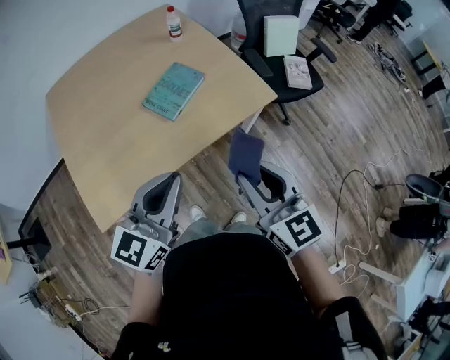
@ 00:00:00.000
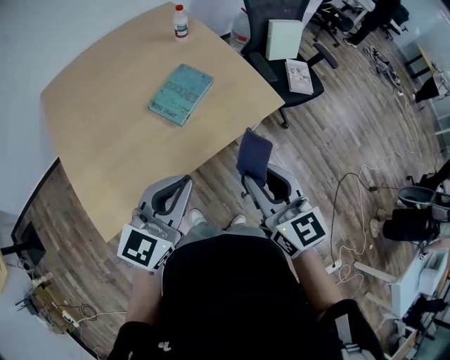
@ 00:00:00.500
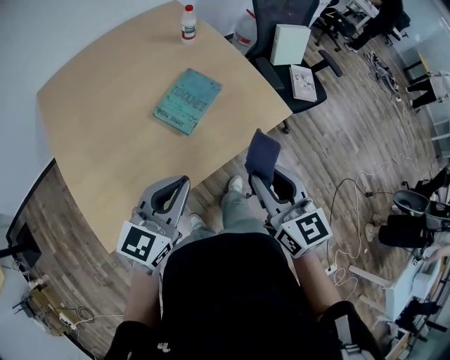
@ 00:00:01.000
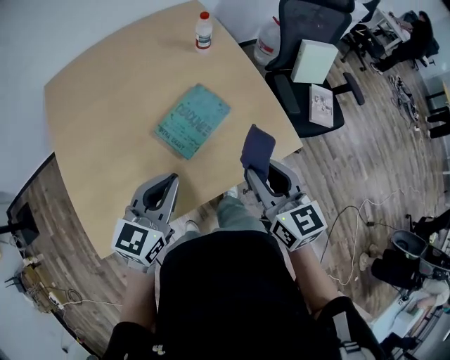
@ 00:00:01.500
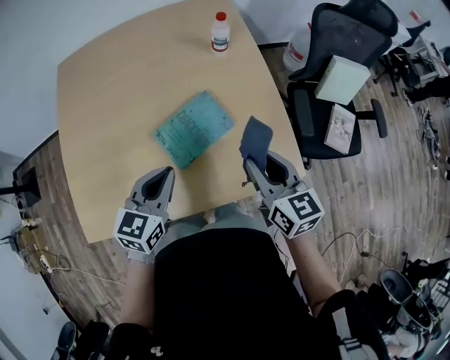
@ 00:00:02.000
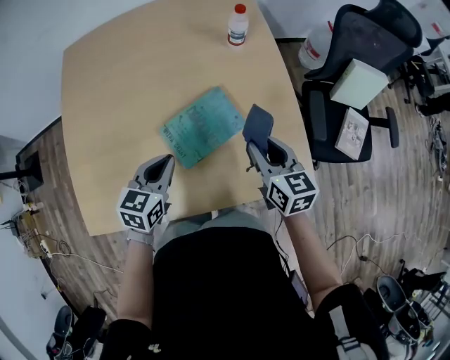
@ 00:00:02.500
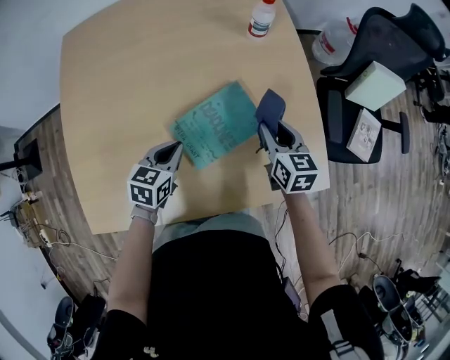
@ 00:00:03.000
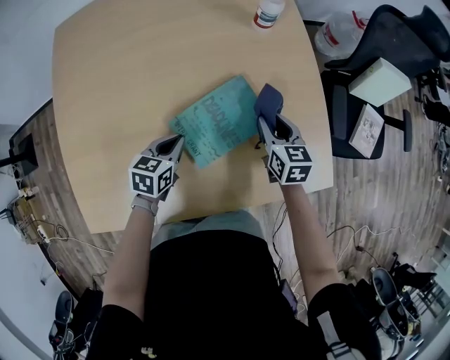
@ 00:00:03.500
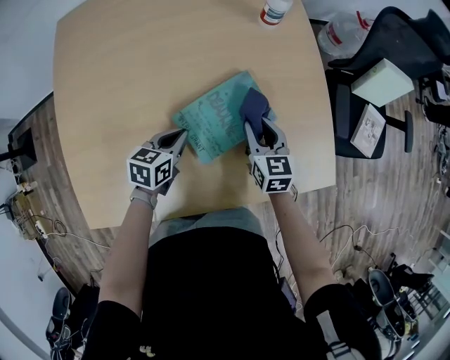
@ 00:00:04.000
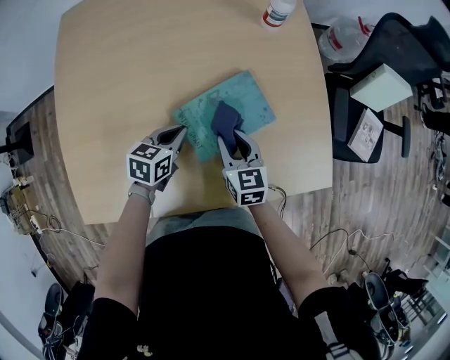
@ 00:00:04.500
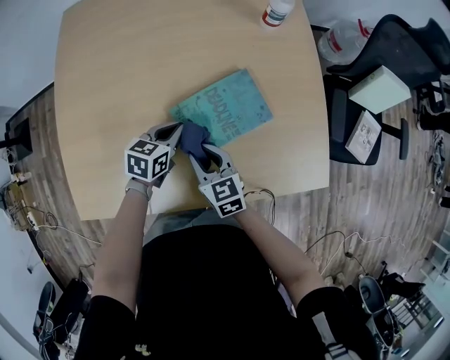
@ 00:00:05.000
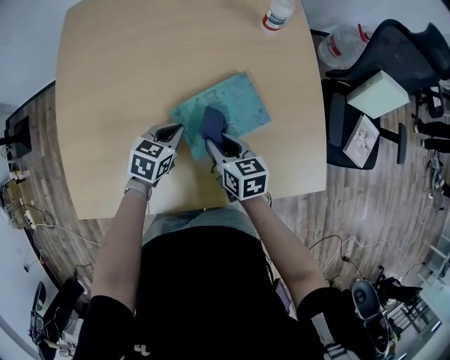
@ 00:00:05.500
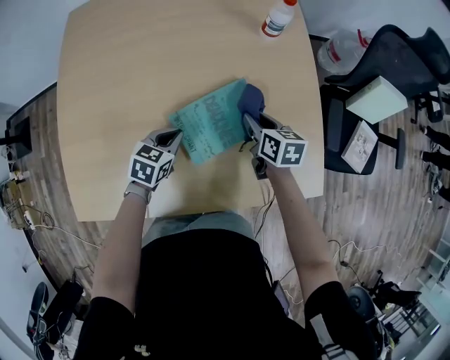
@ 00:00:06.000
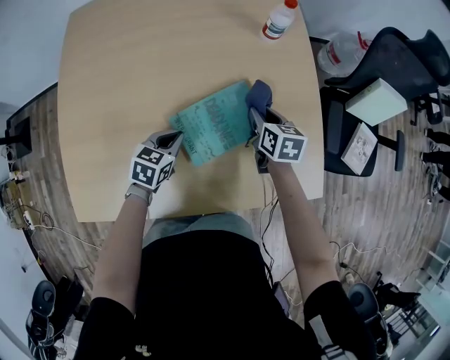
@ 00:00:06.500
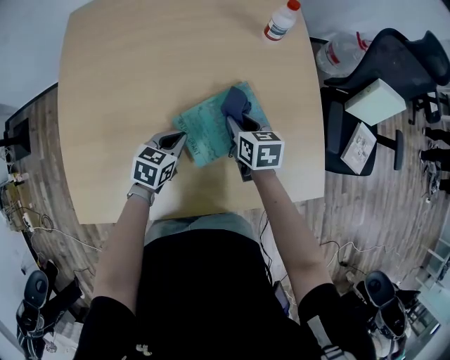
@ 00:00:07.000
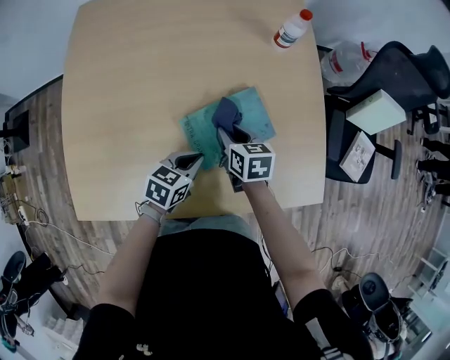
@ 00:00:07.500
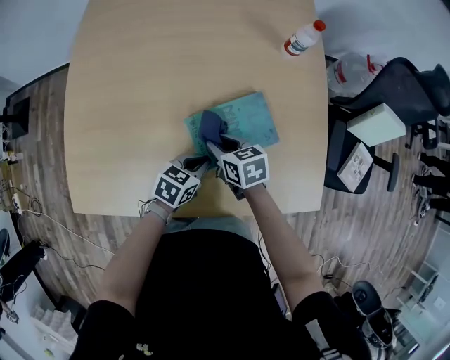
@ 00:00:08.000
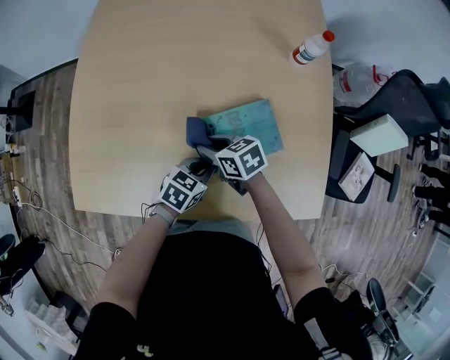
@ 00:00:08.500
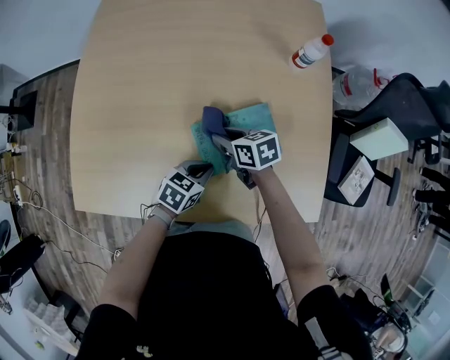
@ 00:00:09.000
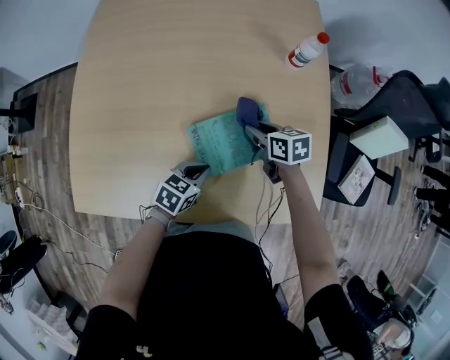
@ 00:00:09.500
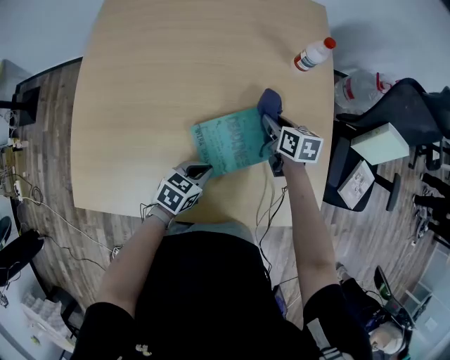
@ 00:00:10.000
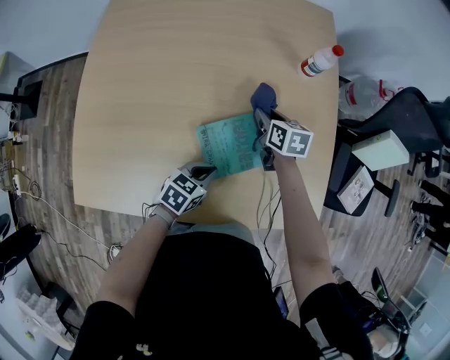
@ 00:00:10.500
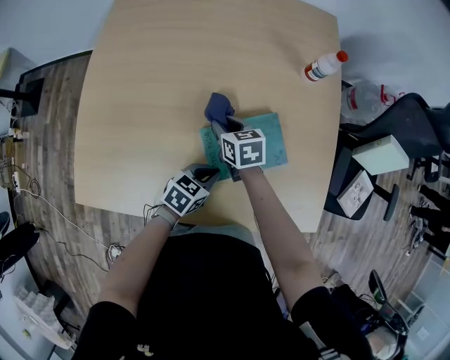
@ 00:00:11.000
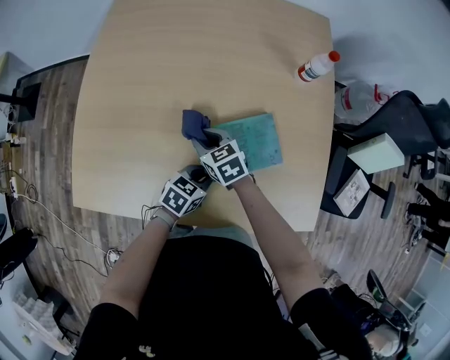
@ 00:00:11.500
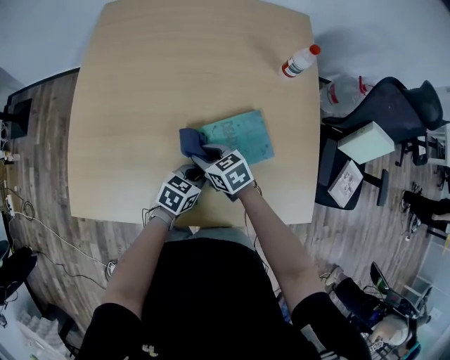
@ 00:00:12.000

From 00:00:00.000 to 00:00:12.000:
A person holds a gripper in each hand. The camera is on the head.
From 00:00:00.000 to 00:00:02.000: The right gripper moves forward, some 35 cm, and turns by approximately 20 degrees. The left gripper is displaced forward and downward by approximately 30 cm, and changes its angle by approximately 30 degrees.
From 00:00:02.000 to 00:00:04.000: The right gripper travels downward, forward and to the left by roughly 25 cm; the left gripper moves downward and forward, some 20 cm, and swivels about 20 degrees.
From 00:00:04.000 to 00:00:06.000: The right gripper moves about 10 cm backward and comes back, and swivels about 20 degrees.
From 00:00:06.000 to 00:00:08.000: The right gripper heads to the left and backward, covering some 15 cm, and rotates some 30 degrees, while the left gripper travels backward and to the right by about 10 cm.
From 00:00:08.000 to 00:00:10.000: The right gripper shifts by approximately 20 cm.
From 00:00:10.000 to 00:00:12.000: The right gripper goes some 25 cm to the left and backward, and swivels some 30 degrees.

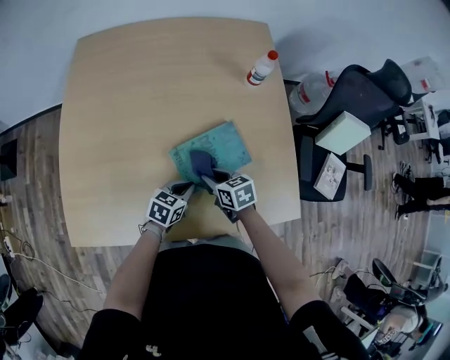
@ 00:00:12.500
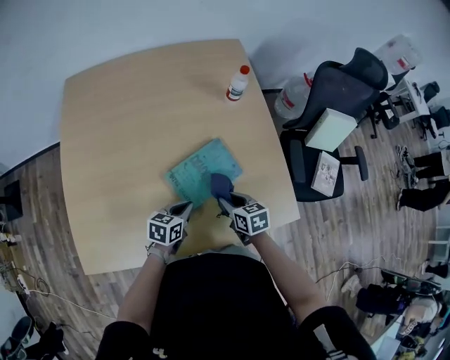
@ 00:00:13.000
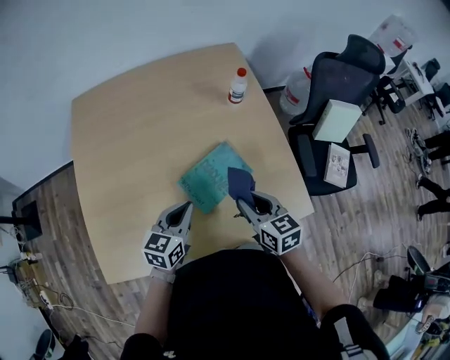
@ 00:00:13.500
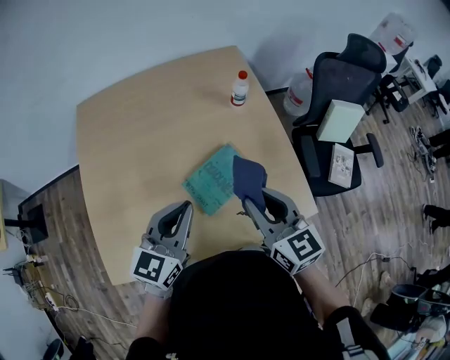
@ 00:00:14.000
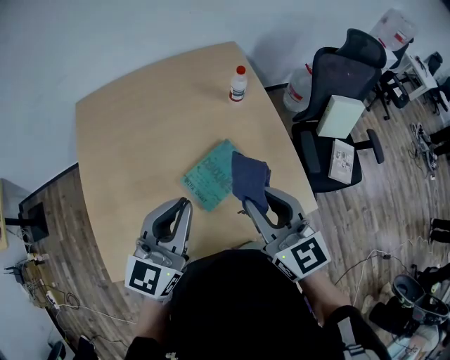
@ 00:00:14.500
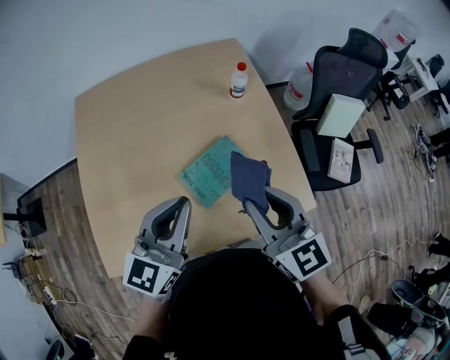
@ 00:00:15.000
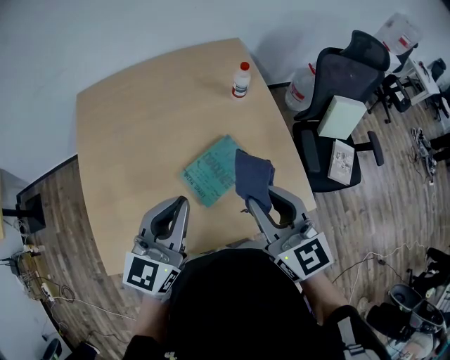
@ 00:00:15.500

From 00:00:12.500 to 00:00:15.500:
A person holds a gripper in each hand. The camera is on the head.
From 00:00:12.500 to 00:00:14.000: Both grippers travel together upward, about 30 cm. The left gripper changes its angle by some 40 degrees, while the right gripper tilts its fingers roughly 30 degrees upward.
From 00:00:14.000 to 00:00:15.500: The right gripper changes place by approximately 5 cm.

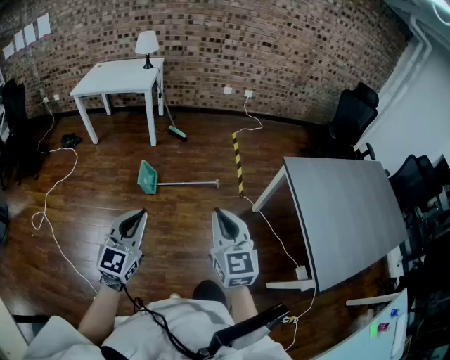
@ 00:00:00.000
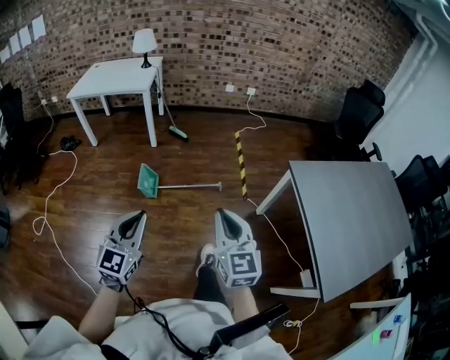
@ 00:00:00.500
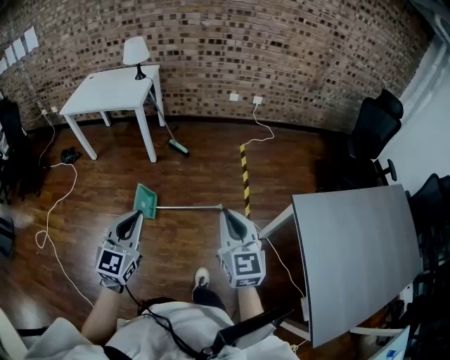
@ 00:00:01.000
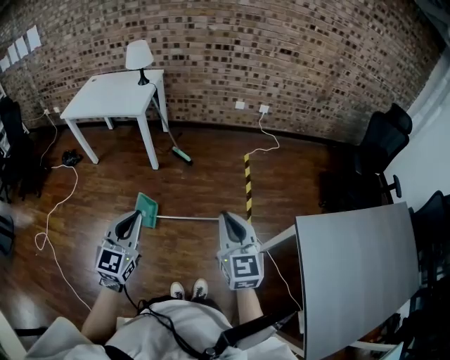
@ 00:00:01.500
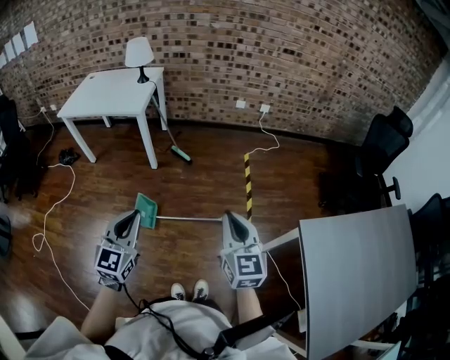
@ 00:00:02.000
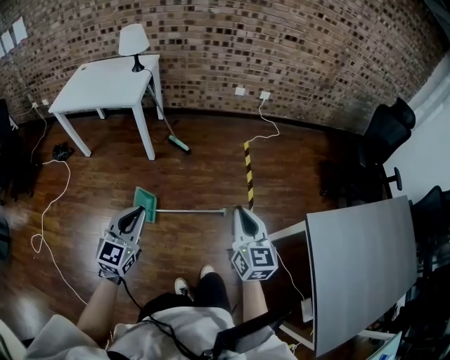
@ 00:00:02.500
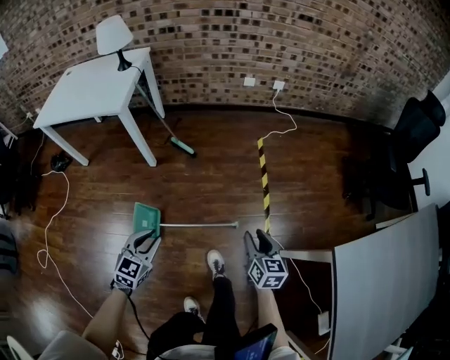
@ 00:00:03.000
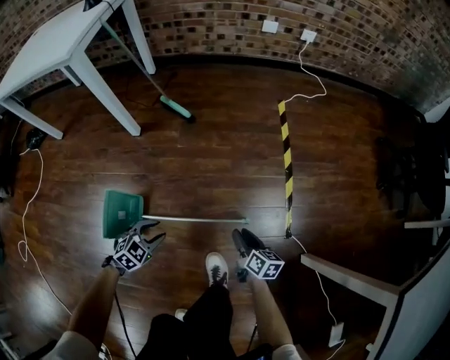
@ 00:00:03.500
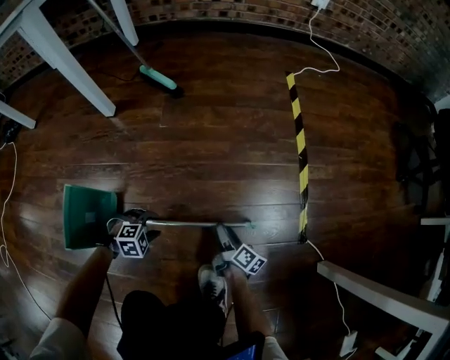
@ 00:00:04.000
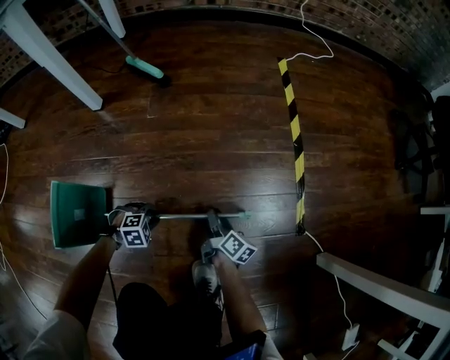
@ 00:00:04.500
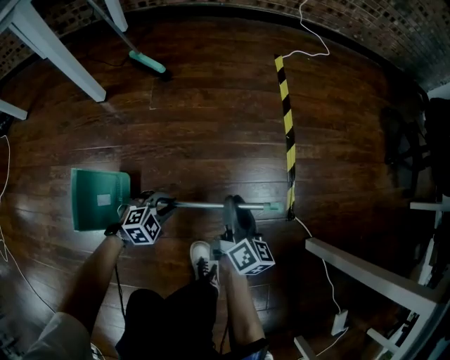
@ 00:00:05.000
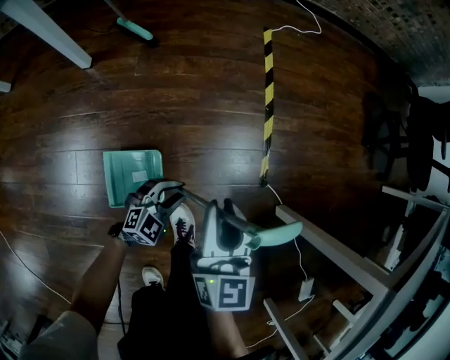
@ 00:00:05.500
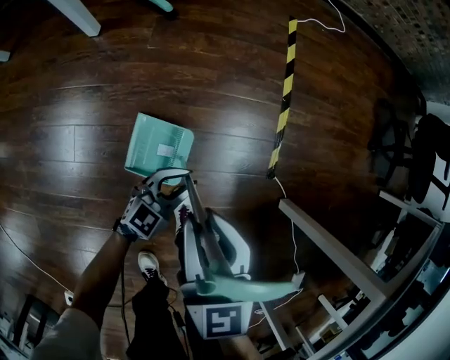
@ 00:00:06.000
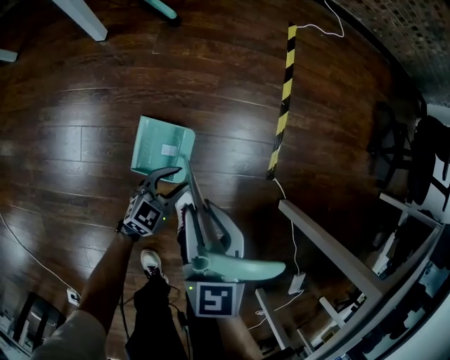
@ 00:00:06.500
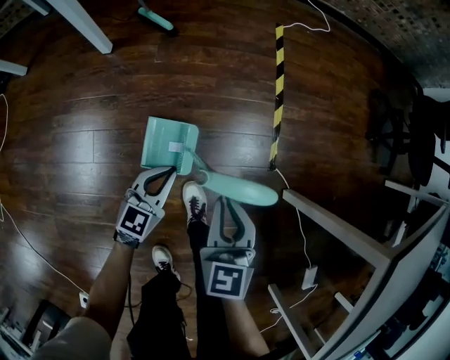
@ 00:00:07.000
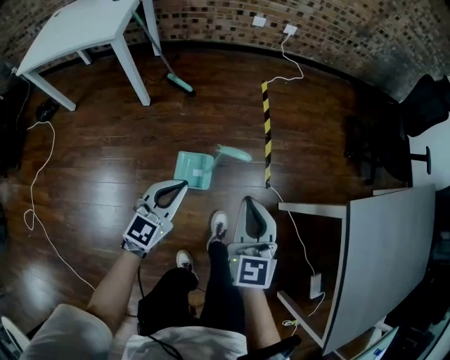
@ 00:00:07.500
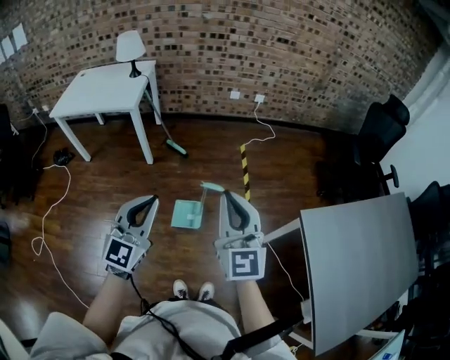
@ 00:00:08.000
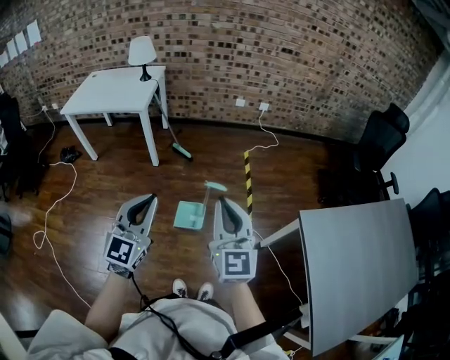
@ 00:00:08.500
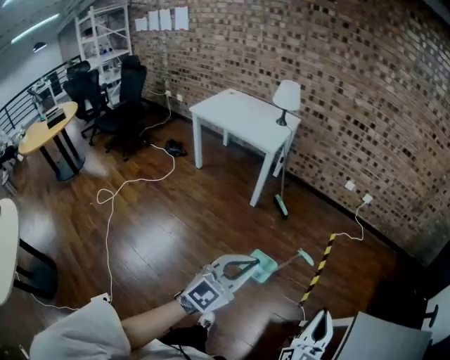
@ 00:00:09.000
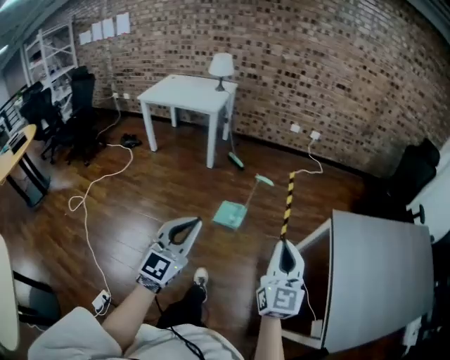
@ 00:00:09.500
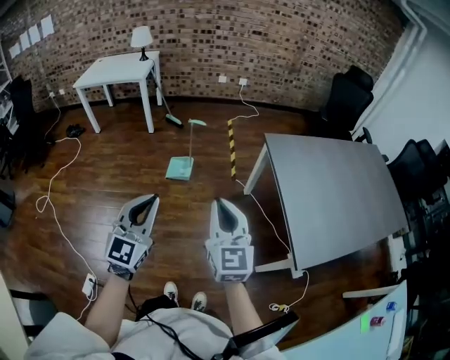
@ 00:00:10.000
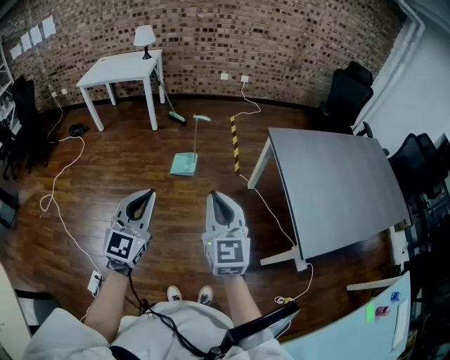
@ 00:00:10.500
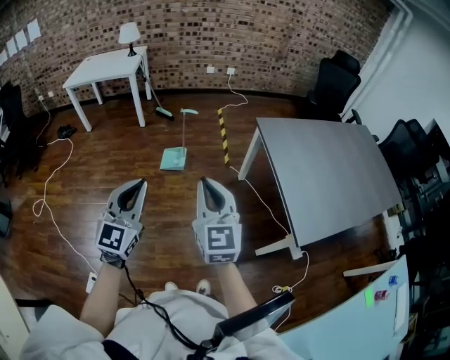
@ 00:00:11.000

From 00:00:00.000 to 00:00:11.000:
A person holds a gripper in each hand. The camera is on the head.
From 00:00:00.000 to 00:00:02.000: The two grippers go some 40 cm forward.
From 00:00:02.000 to 00:00:03.500: The grippers both shift downward by about 70 cm. The left gripper tips its fingers downward by about 50 degrees, and opens. Meanwhile the right gripper twists about 50 degrees clockwise, seen from behind, and opens up.
From 00:00:03.500 to 00:00:05.500: The right gripper goes about 20 cm upward, and turns by about 40 degrees. Meanwhile the left gripper goes downward and returns, roughly 30 cm each way, and rotates about 20 degrees.
From 00:00:05.500 to 00:00:07.500: The left gripper heads upward, covering some 50 cm, rotates some 30 degrees, and closes, while the right gripper travels upward and backward by about 35 cm, changes its angle by approximately 20 degrees, and closes up.
From 00:00:07.500 to 00:00:09.000: The two grippers go about 35 cm upward and backward. The left gripper changes its angle by roughly 20 degrees.
From 00:00:09.000 to 00:00:11.000: The pair of grippers is taken backward, roughly 50 cm.
